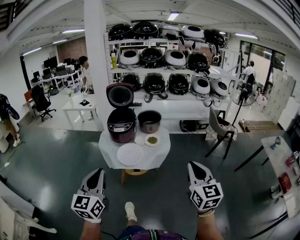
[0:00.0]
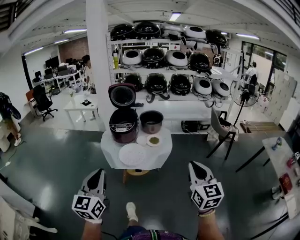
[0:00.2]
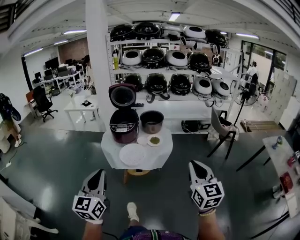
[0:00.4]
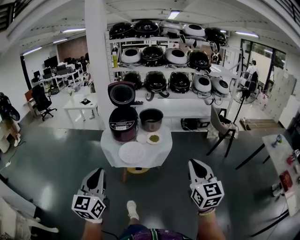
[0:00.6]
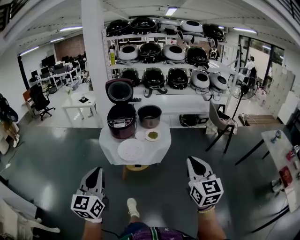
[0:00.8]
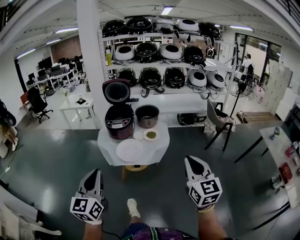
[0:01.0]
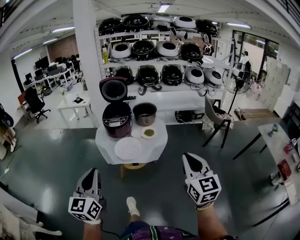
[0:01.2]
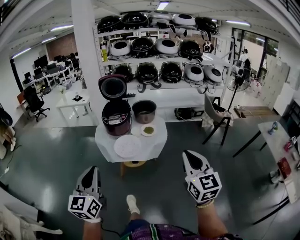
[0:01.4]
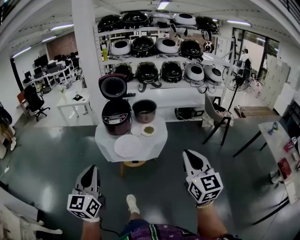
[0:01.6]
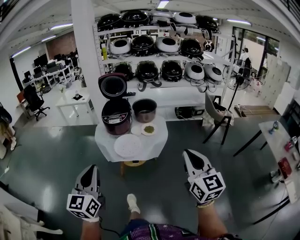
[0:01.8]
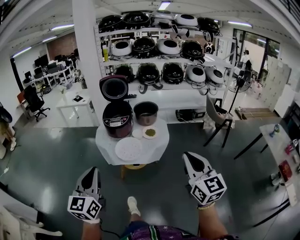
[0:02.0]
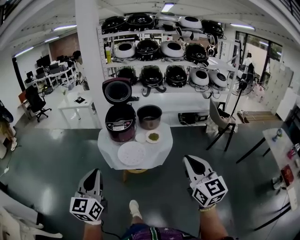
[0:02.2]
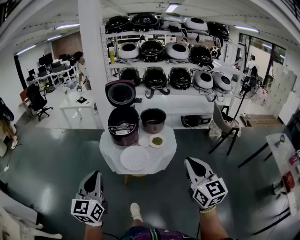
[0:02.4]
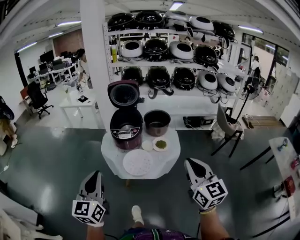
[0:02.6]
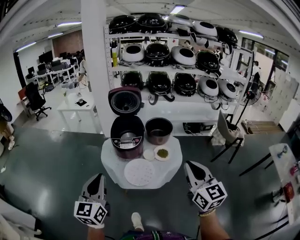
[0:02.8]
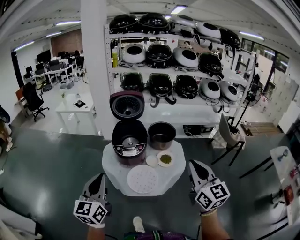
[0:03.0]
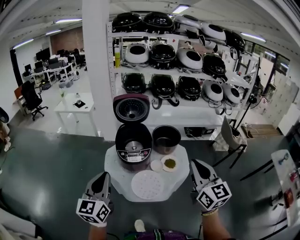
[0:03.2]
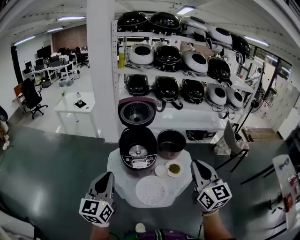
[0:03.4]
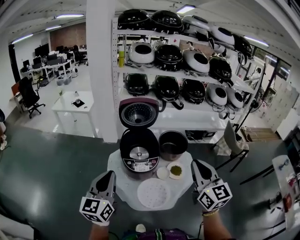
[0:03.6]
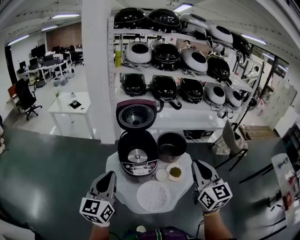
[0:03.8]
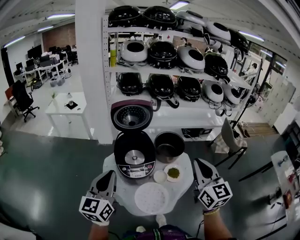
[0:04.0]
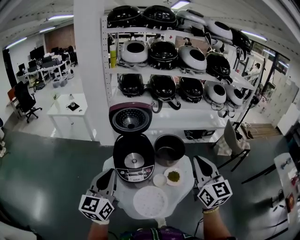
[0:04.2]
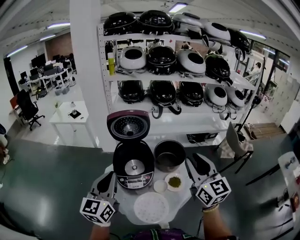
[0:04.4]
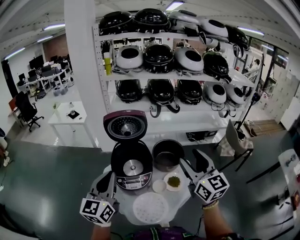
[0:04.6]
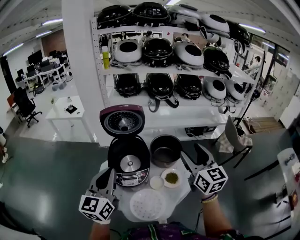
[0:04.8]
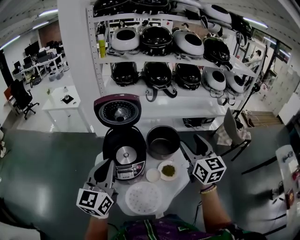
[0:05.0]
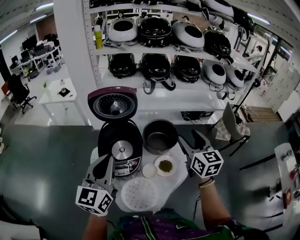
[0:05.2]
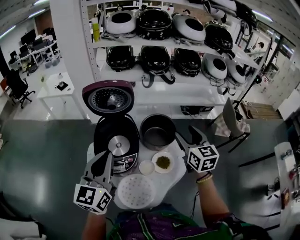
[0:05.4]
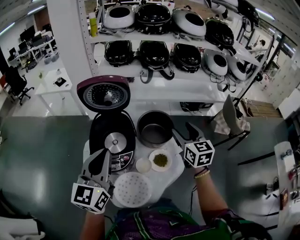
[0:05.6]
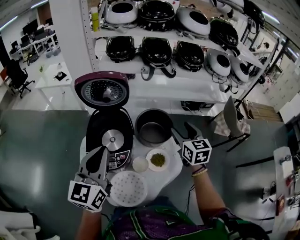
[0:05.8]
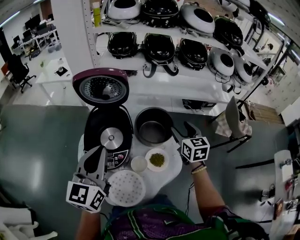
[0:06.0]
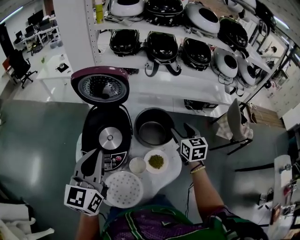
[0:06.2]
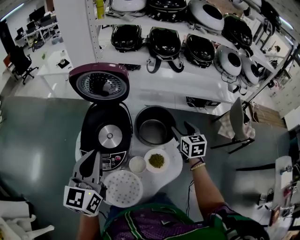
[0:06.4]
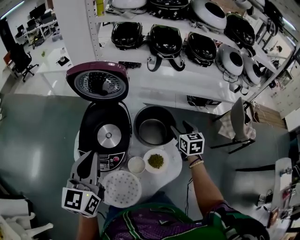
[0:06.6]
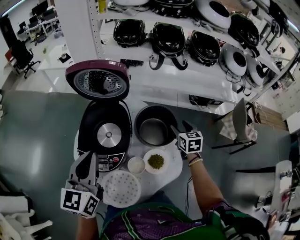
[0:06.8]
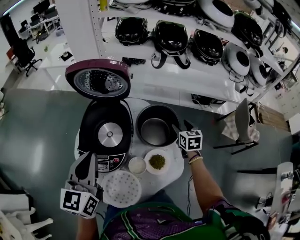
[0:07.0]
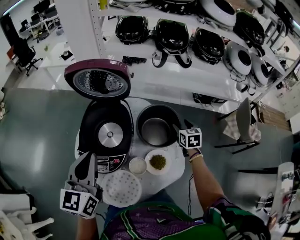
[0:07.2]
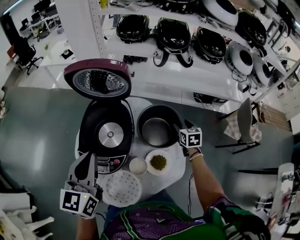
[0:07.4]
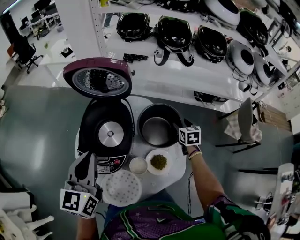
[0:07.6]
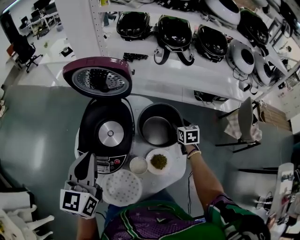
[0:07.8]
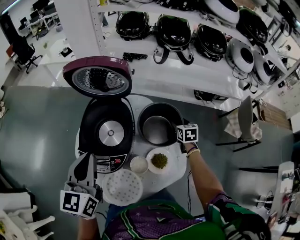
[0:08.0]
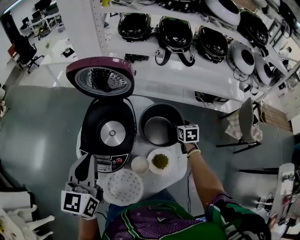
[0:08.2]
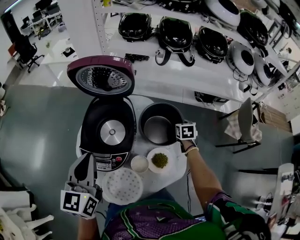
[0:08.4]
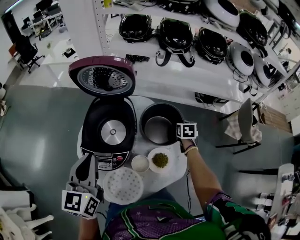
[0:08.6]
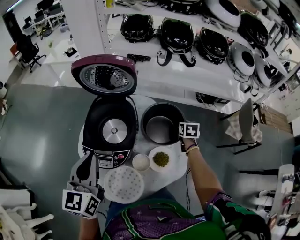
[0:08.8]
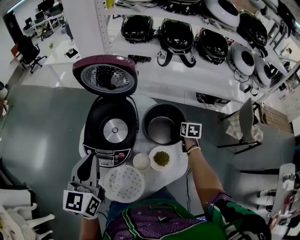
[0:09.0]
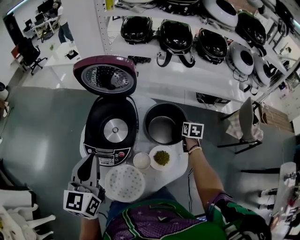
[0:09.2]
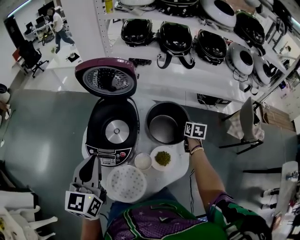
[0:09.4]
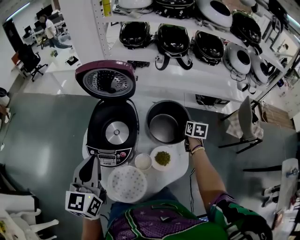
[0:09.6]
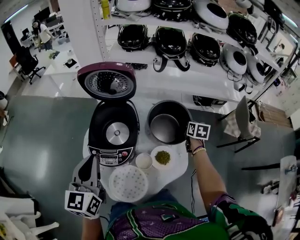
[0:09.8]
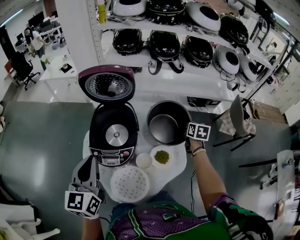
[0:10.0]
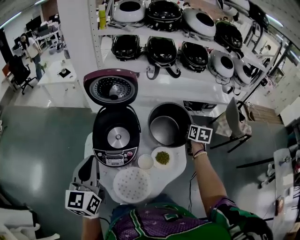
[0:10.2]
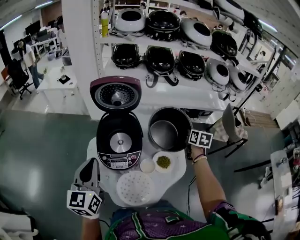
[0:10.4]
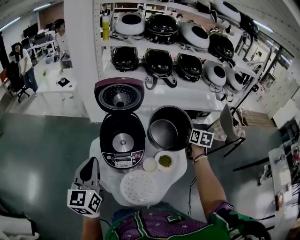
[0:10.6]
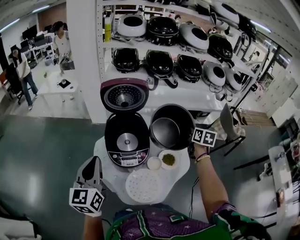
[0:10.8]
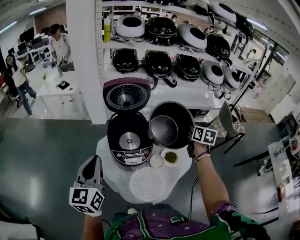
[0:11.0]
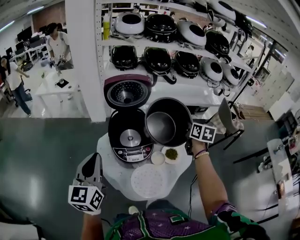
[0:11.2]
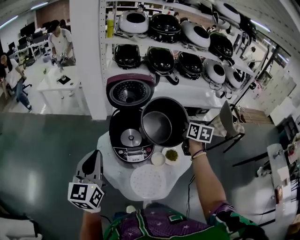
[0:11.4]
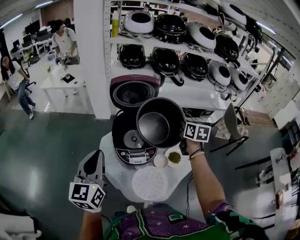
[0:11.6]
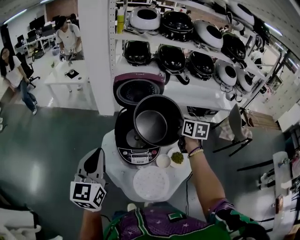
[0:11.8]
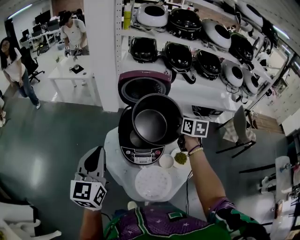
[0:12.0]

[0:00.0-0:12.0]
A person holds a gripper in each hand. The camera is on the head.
0:00.0 to 0:01.6: The grippers make only small movements.
0:01.6 to 0:03.0: The grippers both shift forward by about 30 cm.
0:03.0 to 0:04.4: The two grippers go approximately 25 cm forward.
0:04.4 to 0:06.0: The right gripper shifts roughly 35 cm downward, forward and to the right, changes its angle by some 30 degrees, and opens. Meanwhile the left gripper travels to the right, forward and downward by roughly 15 cm.
0:06.0 to 0:07.6: The right gripper moves downward and forward, roughly 25 cm. Meanwhile the left gripper heads downward, covering approximately 5 cm.
0:07.6 to 0:09.0: The right gripper closes up.
0:09.0 to 0:10.4: The right gripper is displaced upward and backward by about 20 cm, while the left gripper is displaced to the left and backward by about 10 cm.
0:10.4 to 0:12.0: The left gripper is displaced to the left by some 10 cm; the right gripper travels to the left by roughly 25 cm.

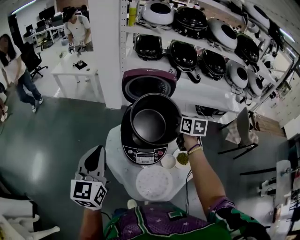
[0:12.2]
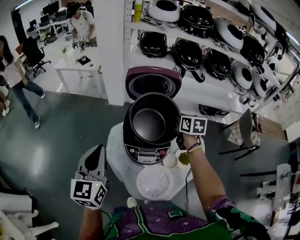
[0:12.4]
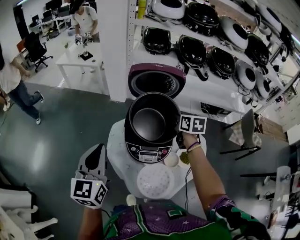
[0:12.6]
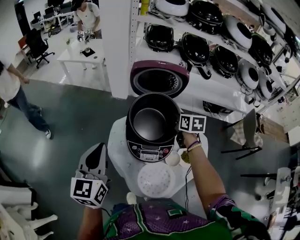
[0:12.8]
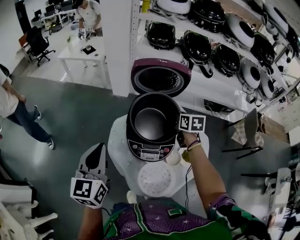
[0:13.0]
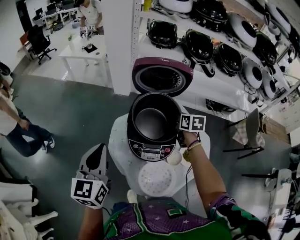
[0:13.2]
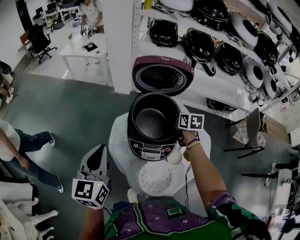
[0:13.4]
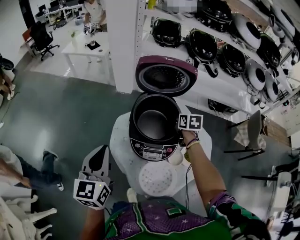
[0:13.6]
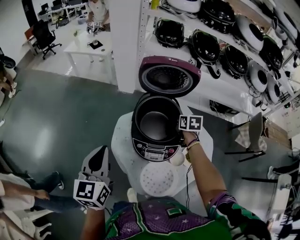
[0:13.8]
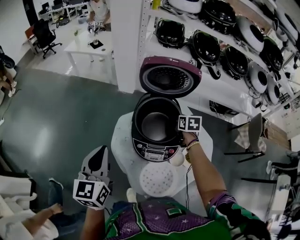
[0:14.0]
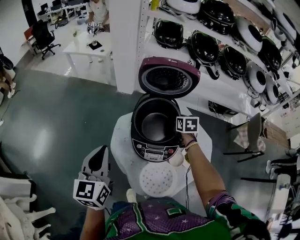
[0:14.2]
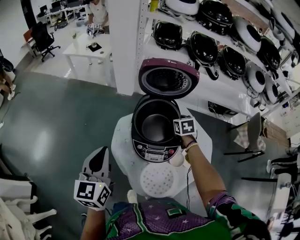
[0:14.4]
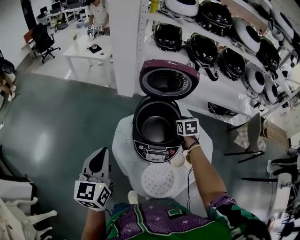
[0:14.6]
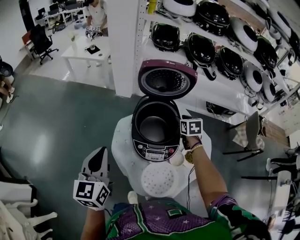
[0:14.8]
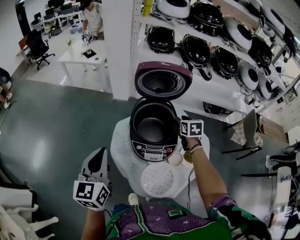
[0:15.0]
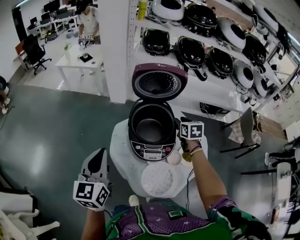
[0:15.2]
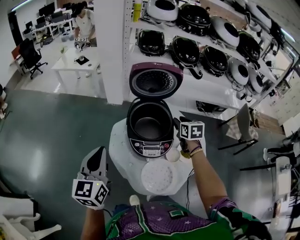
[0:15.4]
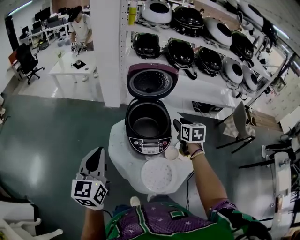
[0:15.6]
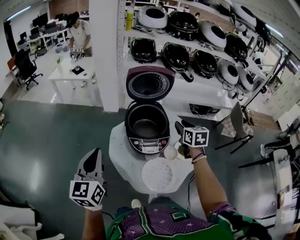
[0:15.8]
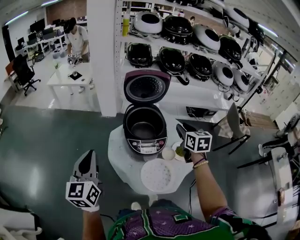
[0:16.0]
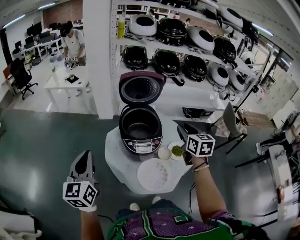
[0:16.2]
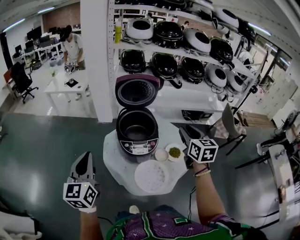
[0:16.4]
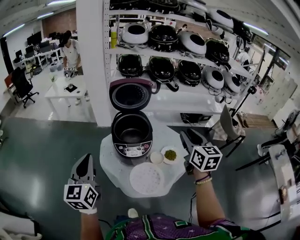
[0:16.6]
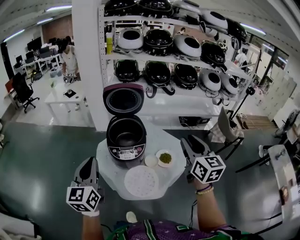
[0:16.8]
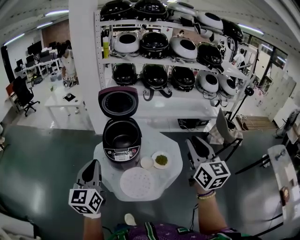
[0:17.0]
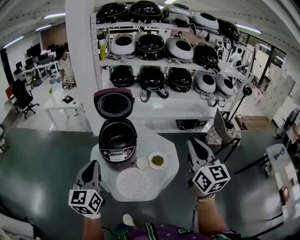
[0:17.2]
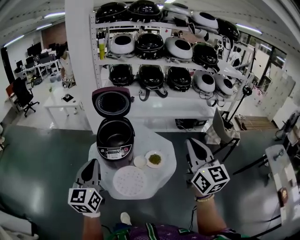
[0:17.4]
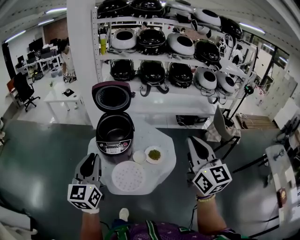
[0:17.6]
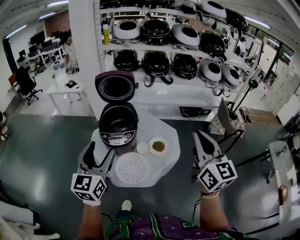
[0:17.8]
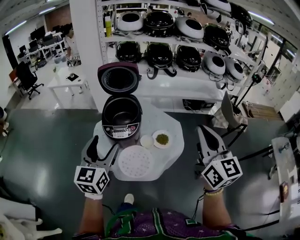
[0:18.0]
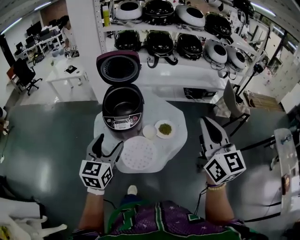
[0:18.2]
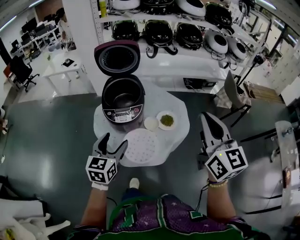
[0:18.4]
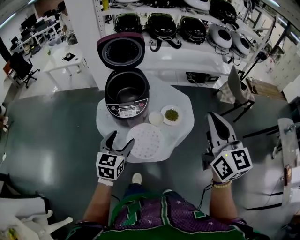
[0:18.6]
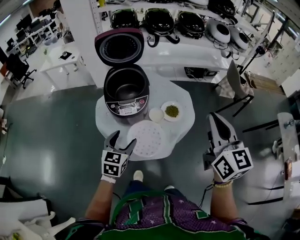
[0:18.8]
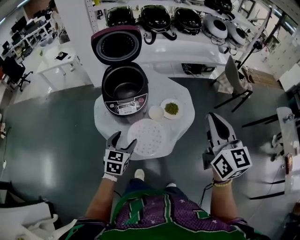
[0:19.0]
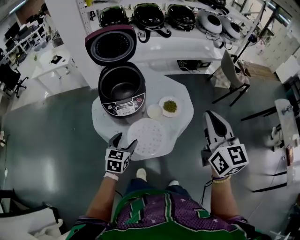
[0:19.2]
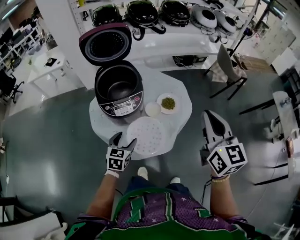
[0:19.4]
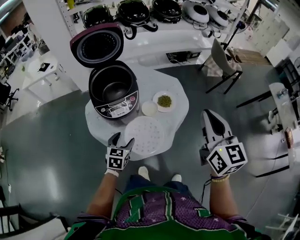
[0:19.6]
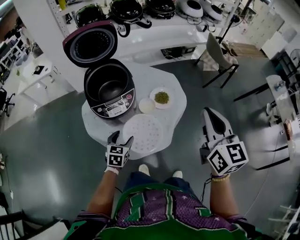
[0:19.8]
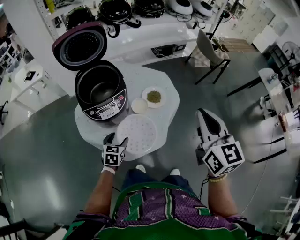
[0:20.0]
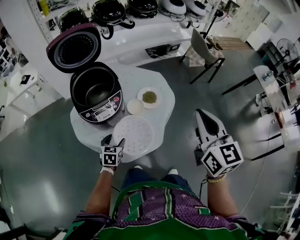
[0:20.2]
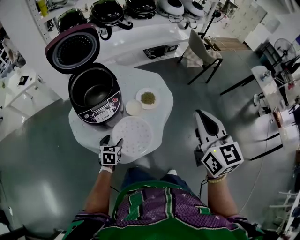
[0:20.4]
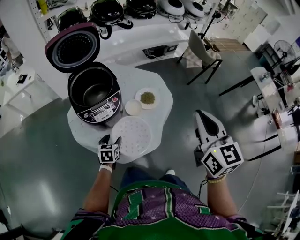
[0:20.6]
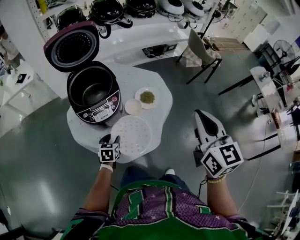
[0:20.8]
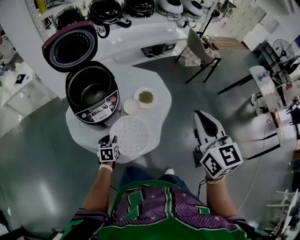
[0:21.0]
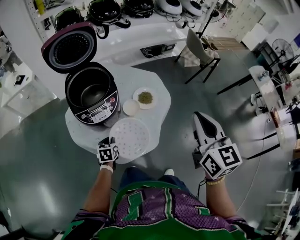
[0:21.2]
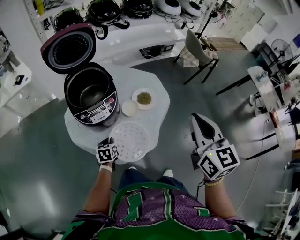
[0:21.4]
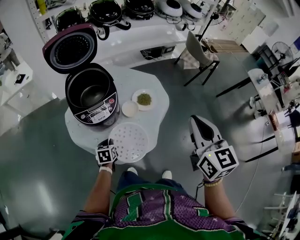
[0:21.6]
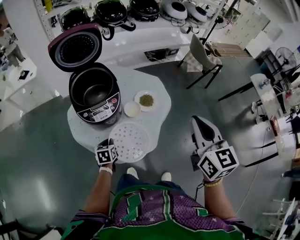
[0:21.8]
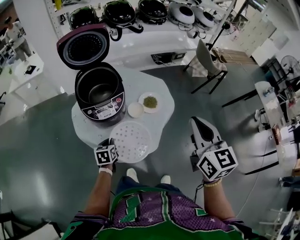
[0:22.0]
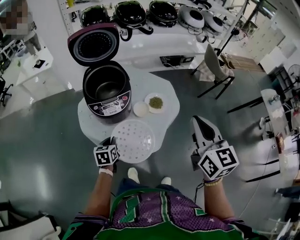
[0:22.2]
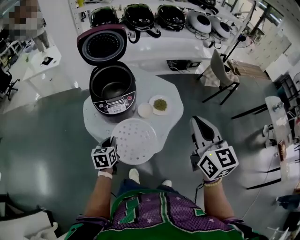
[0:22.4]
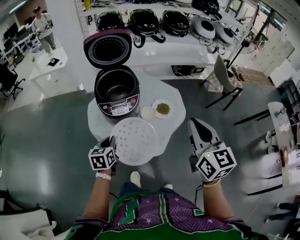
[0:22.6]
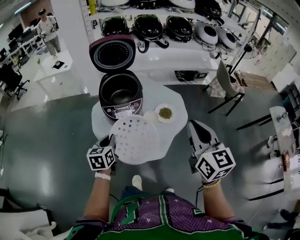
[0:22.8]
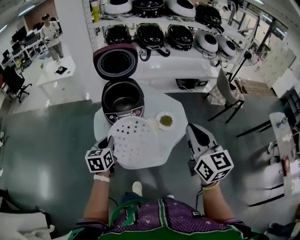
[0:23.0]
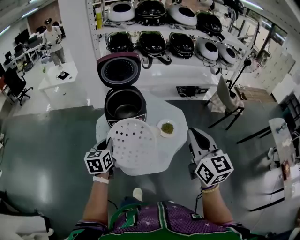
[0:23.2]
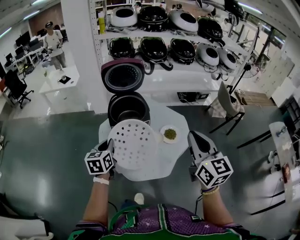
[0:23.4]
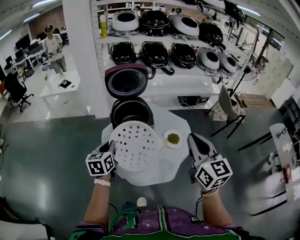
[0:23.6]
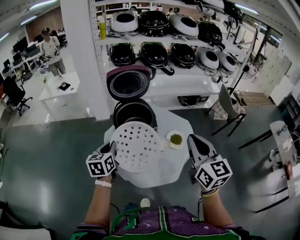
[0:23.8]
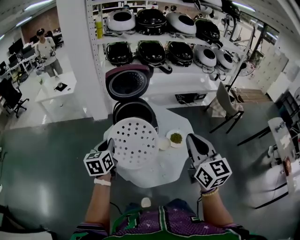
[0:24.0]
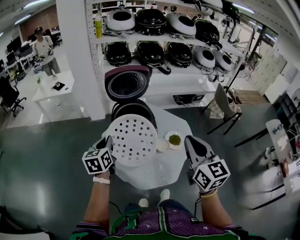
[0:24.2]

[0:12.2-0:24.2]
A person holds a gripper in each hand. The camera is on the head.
0:12.2 to 0:13.8: The right gripper heads downward, covering roughly 10 cm; the left gripper moves downward, roughly 5 cm.
0:13.8 to 0:15.2: The right gripper goes some 10 cm upward and backward, and opens.
0:15.2 to 0:16.6: The left gripper travels backward and upward by roughly 10 cm, while the right gripper shifts approximately 35 cm backward and upward, and swivels roughly 30 degrees.
0:16.6 to 0:18.2: The right gripper is displaced backward, to the right and upward by roughly 15 cm, and closes its fingers, while the left gripper goes some 20 cm to the right and downward, and opens up.
0:18.2 to 0:19.8: The left gripper goes about 30 cm downward, and changes its angle by about 30 degrees; the right gripper moves downward, about 10 cm, and rotates approximately 20 degrees.
0:19.8 to 0:21.2: The left gripper travels downward by approximately 10 cm, and closes up.
0:21.2 to 0:22.6: The left gripper heads upward, covering roughly 15 cm, and changes its angle by about 20 degrees.
0:22.6 to 0:24.2: The right gripper heads to the left and forward, covering roughly 15 cm; the left gripper moves upward, forward and to the left, roughly 25 cm.
